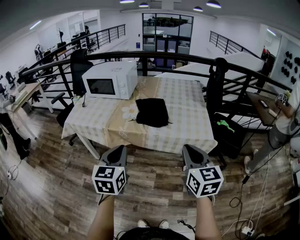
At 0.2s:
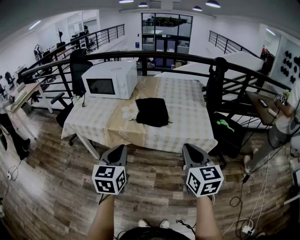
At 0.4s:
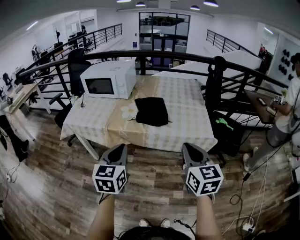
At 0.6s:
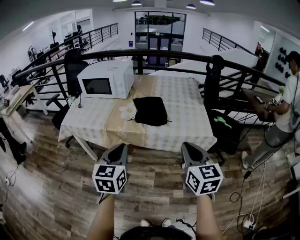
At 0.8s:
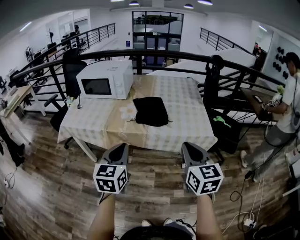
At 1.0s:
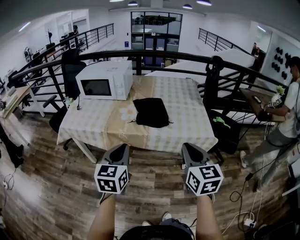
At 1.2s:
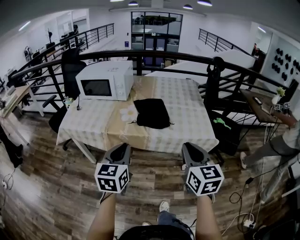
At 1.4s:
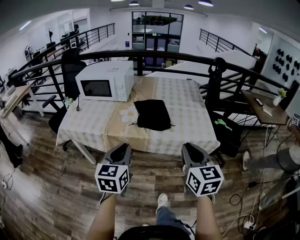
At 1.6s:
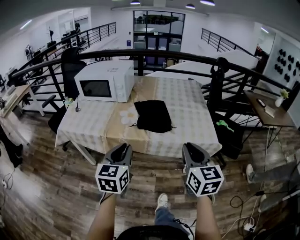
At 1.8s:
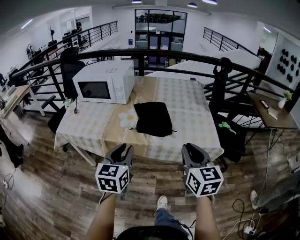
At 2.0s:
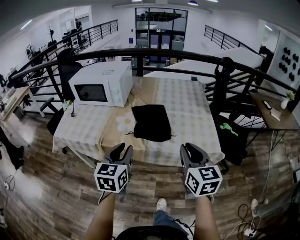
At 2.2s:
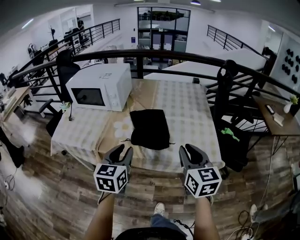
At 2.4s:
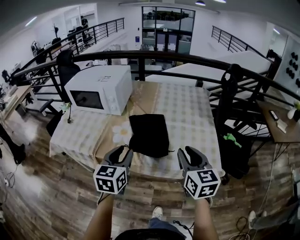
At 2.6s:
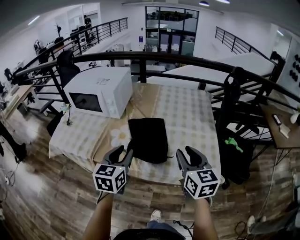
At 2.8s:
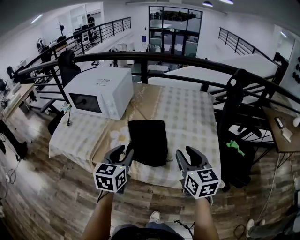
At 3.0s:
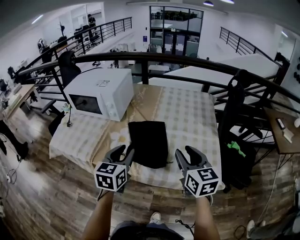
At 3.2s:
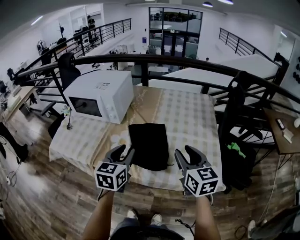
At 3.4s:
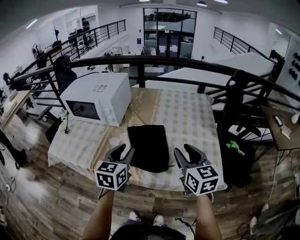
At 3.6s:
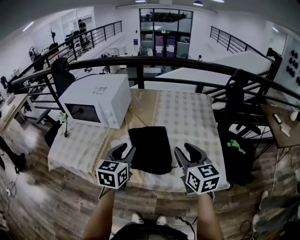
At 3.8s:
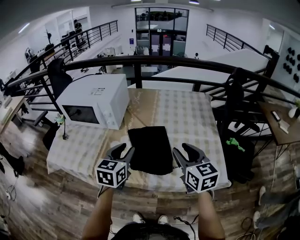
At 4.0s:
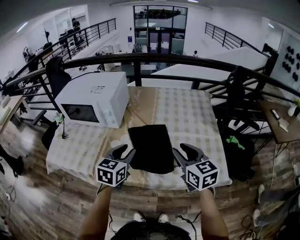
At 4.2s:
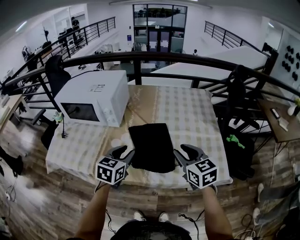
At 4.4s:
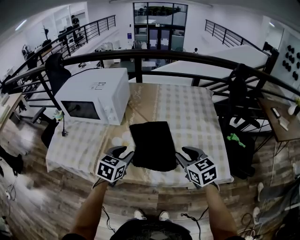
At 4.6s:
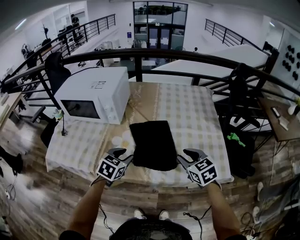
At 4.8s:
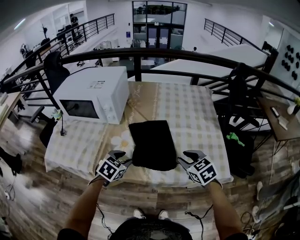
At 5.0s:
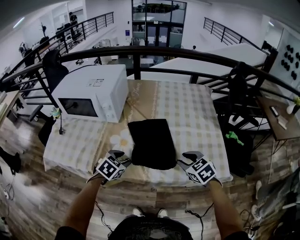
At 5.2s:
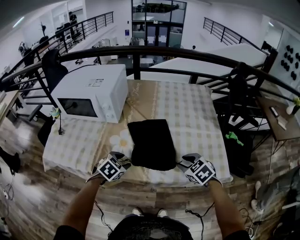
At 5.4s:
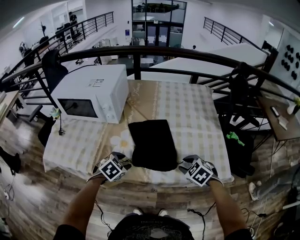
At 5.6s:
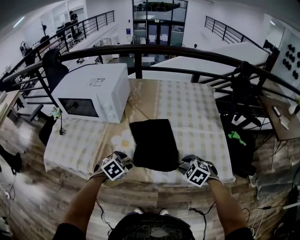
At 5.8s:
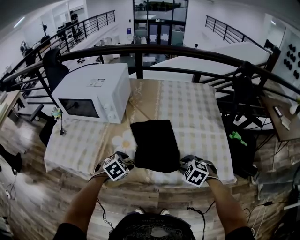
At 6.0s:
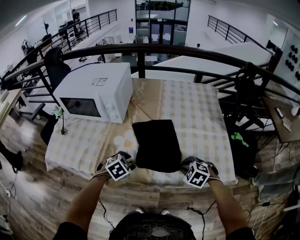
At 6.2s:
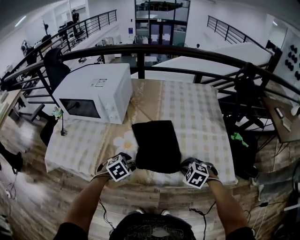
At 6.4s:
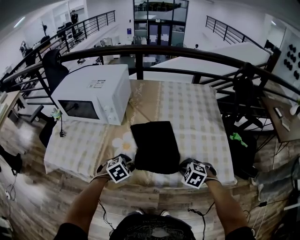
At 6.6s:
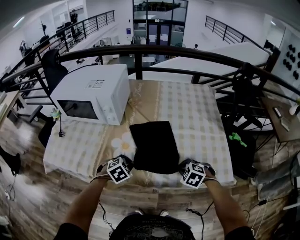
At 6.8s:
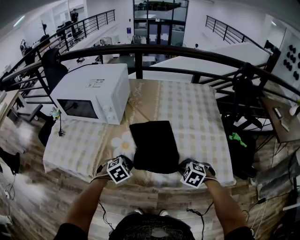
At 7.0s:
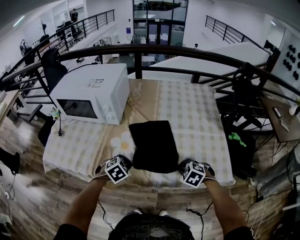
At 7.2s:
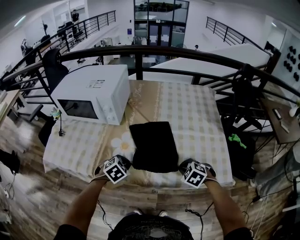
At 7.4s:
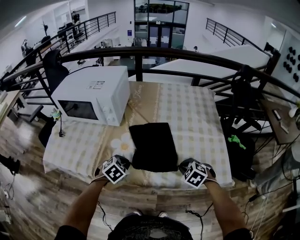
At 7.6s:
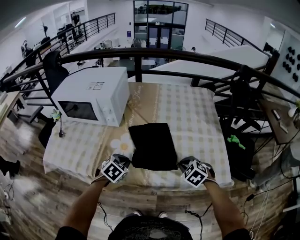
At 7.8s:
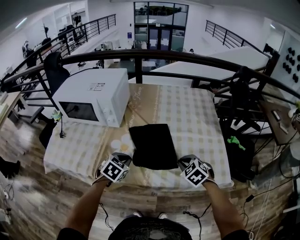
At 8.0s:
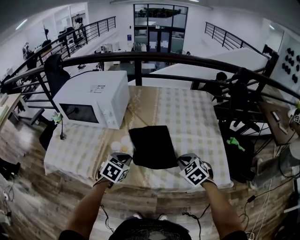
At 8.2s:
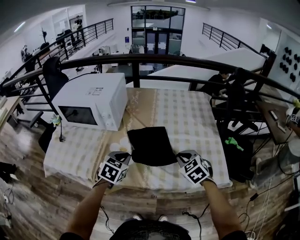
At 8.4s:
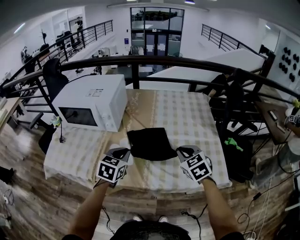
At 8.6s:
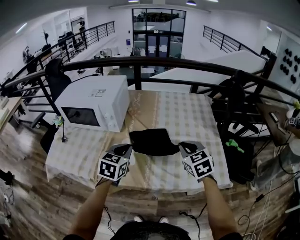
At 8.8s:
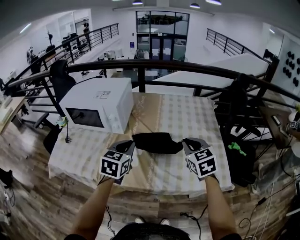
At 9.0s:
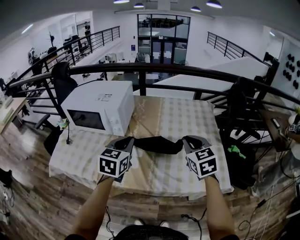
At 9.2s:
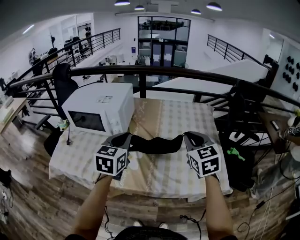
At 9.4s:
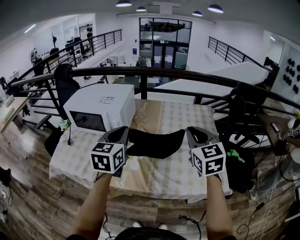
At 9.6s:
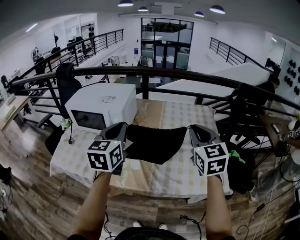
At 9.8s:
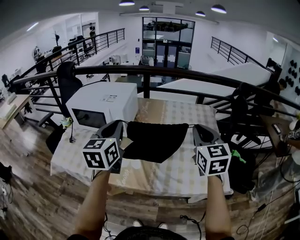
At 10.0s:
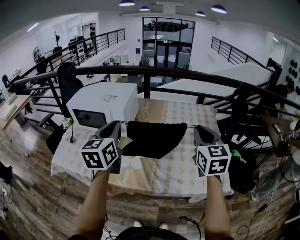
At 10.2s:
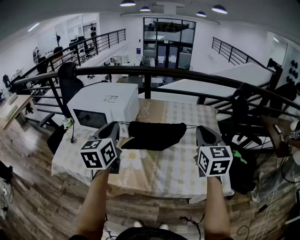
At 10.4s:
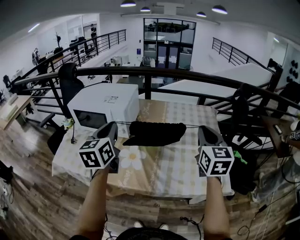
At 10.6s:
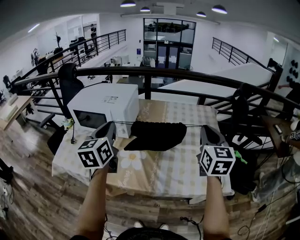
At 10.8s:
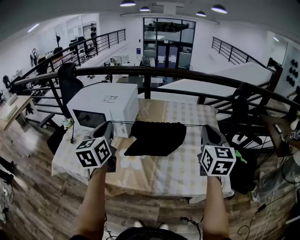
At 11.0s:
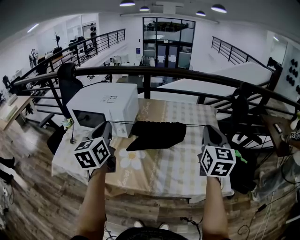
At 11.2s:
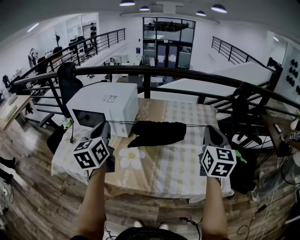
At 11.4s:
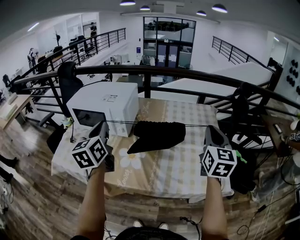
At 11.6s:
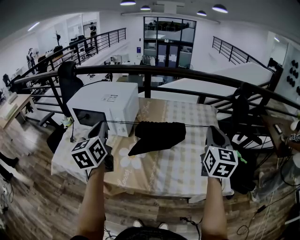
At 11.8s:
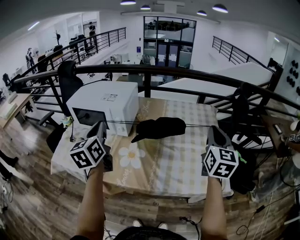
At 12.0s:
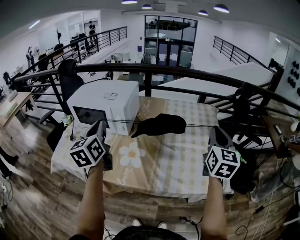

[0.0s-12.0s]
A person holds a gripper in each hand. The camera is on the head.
0.0s to 1.6s: Both grippers move forward, about 5 cm.
1.6s to 3.0s: The two grippers go some 25 cm forward. The left gripper opens. Meanwhile the right gripper opens its fingers.
3.0s to 4.4s: The right gripper is displaced downward and to the left by roughly 10 cm; the left gripper heads downward, forward and to the left, covering about 10 cm, and swivels about 20 degrees.
4.4s to 6.0s: Both grippers move downward, about 15 cm. The right gripper points its fingers some 30 degrees further downward. The left gripper swivels approximately 40 degrees.
6.0s to 7.6s: The left gripper closes up.
7.6s to 9.0s: Both grippers travel together upward, about 20 cm. The left gripper points its fingers roughly 30 degrees further upward. Meanwhile the right gripper tips its fingers upward by approximately 30 degrees.
9.0s to 10.4s: The right gripper goes roughly 10 cm upward, and rotates roughly 20 degrees. Meanwhile the left gripper heads upward and to the left, covering about 15 cm, and changes its angle by about 20 degrees.
10.4s to 12.0s: The right gripper goes approximately 5 cm to the right, while the left gripper travels to the left by approximately 5 cm.

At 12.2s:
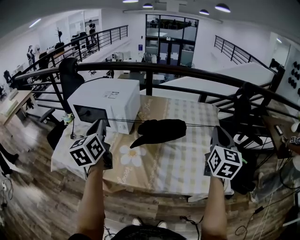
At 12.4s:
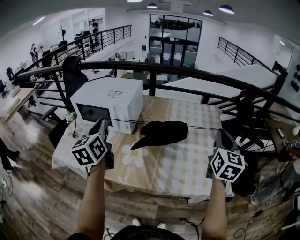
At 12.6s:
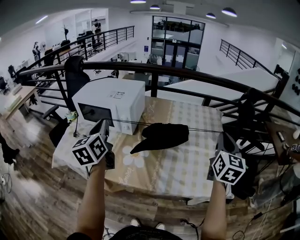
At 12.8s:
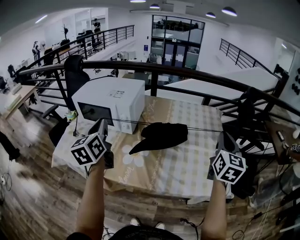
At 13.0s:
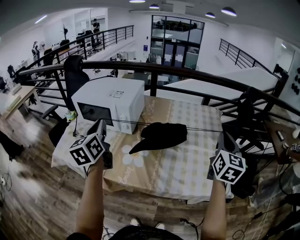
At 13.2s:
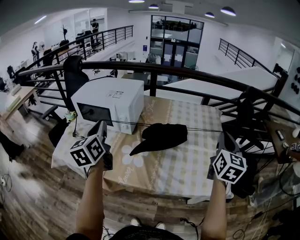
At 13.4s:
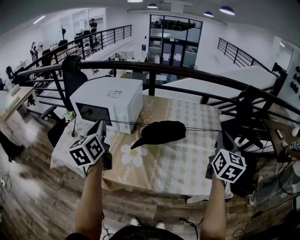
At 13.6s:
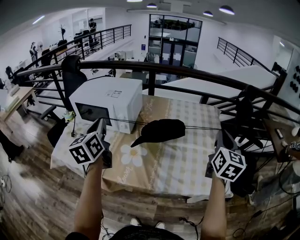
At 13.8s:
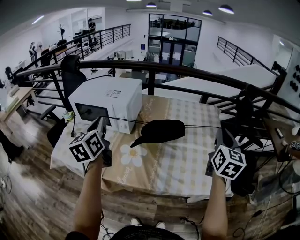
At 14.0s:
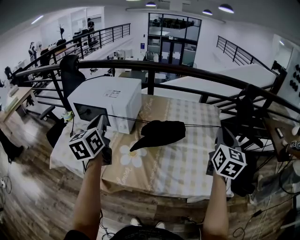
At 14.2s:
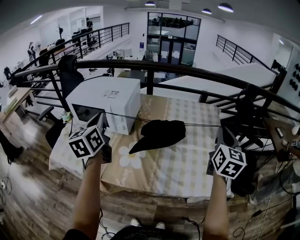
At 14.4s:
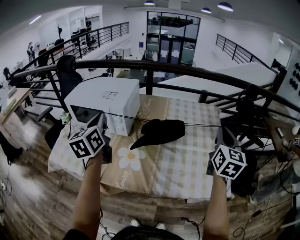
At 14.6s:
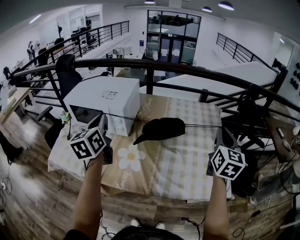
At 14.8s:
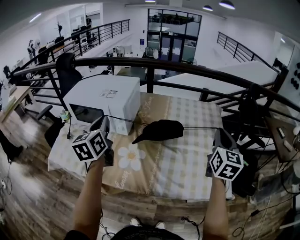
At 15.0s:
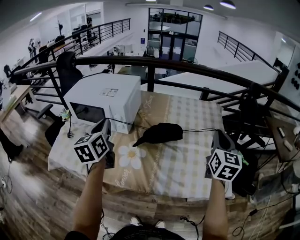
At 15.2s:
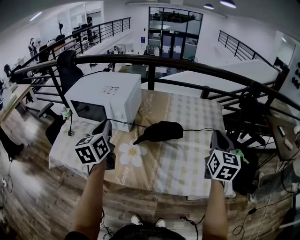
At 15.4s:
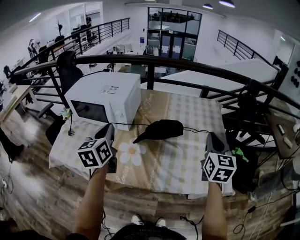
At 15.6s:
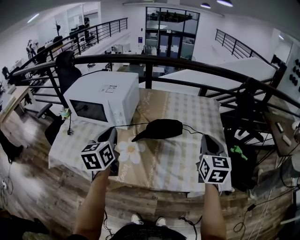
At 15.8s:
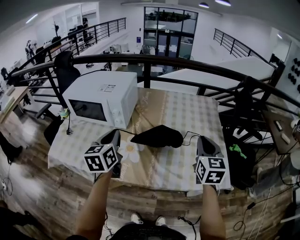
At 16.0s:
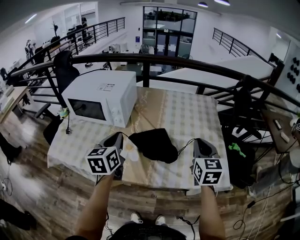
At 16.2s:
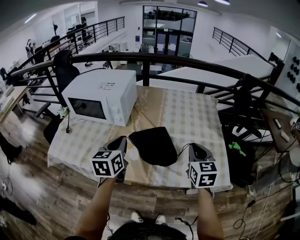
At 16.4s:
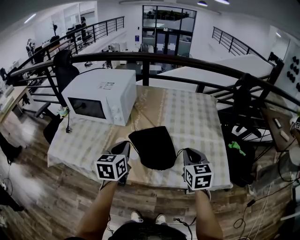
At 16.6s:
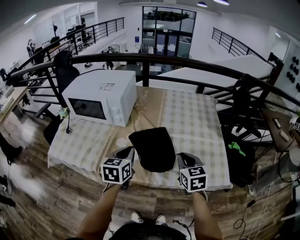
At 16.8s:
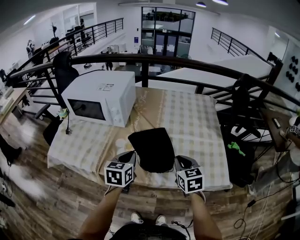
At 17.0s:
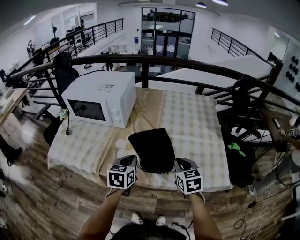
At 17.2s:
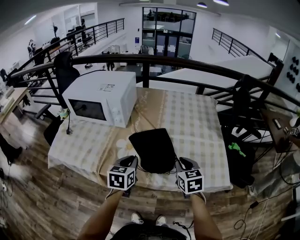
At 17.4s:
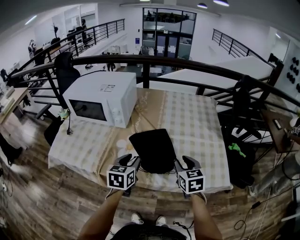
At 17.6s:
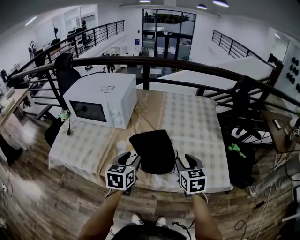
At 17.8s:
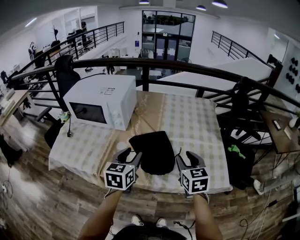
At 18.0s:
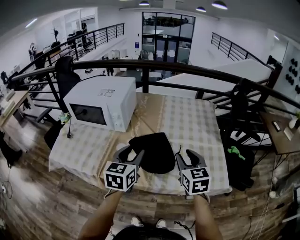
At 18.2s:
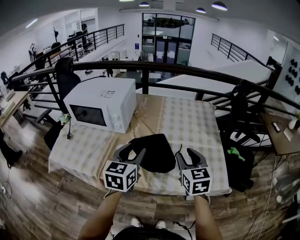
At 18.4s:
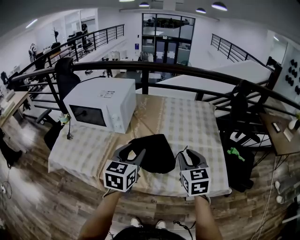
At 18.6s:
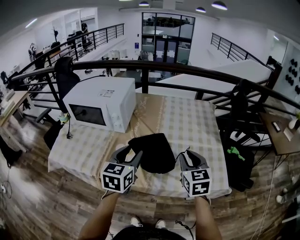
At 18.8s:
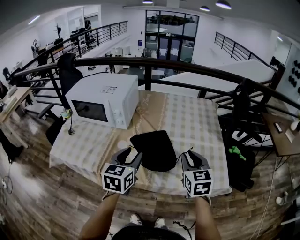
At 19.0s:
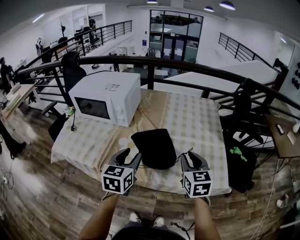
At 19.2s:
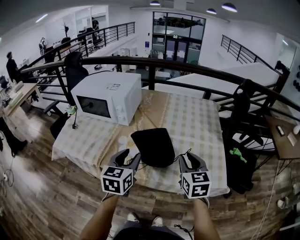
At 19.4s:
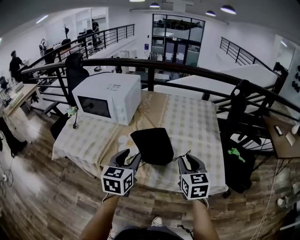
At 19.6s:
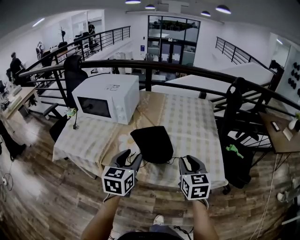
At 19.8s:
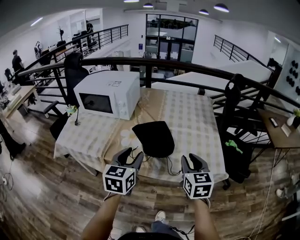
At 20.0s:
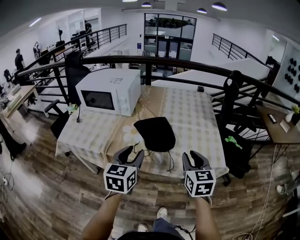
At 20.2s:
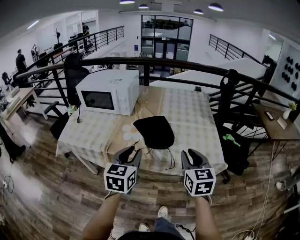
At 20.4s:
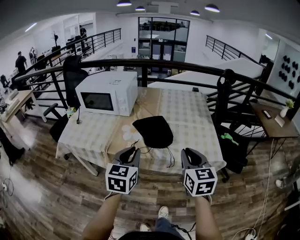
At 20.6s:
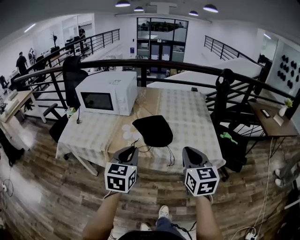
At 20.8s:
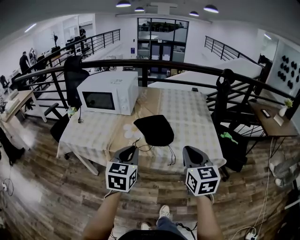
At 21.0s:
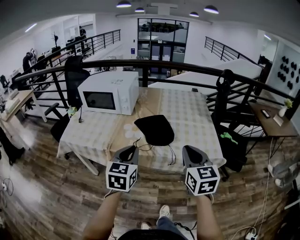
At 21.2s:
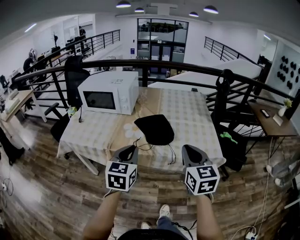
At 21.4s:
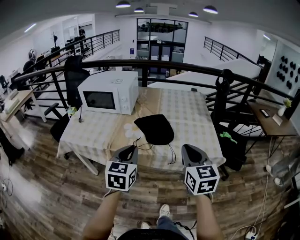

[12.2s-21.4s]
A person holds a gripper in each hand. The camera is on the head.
12.2s to 13.8s: The grippers make only small movements.
13.8s to 15.2s: The left gripper shifts by about 5 cm; the right gripper shifts by approximately 5 cm.
15.2s to 16.8s: The left gripper travels downward, to the right and backward by approximately 20 cm, and changes its angle by roughly 30 degrees; the right gripper heads downward, to the left and backward, covering some 20 cm, and changes its angle by some 30 degrees.
16.8s to 18.4s: Both grippers move upward, about 10 cm. The left gripper opens up. Meanwhile the right gripper opens its fingers.
18.4s to 19.8s: Both grippers travel together backward, some 10 cm.
19.8s to 21.4s: The left gripper moves backward, approximately 10 cm, and closes up. Meanwhile the right gripper goes some 15 cm backward and upward.

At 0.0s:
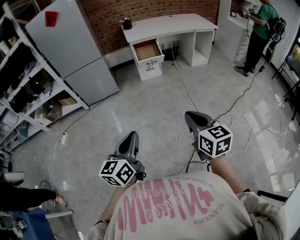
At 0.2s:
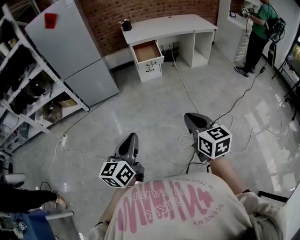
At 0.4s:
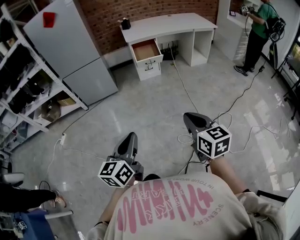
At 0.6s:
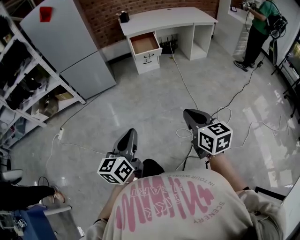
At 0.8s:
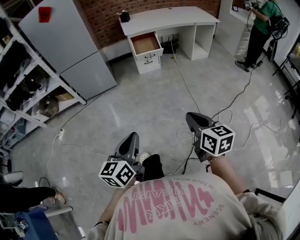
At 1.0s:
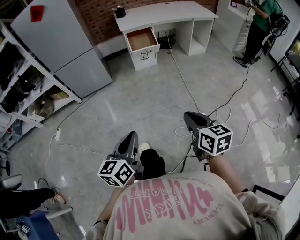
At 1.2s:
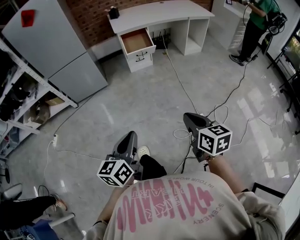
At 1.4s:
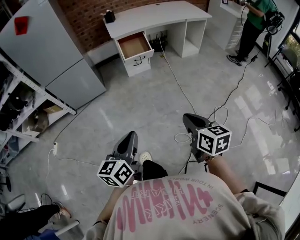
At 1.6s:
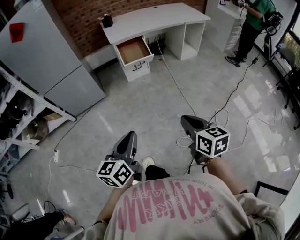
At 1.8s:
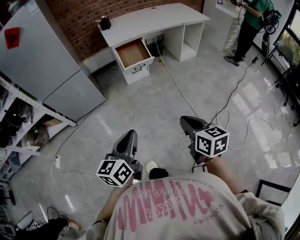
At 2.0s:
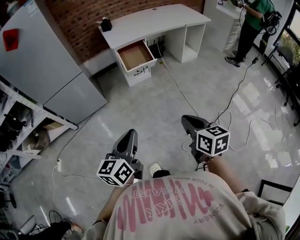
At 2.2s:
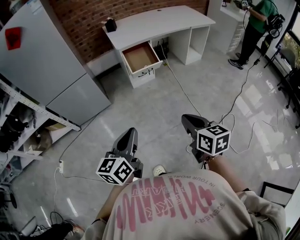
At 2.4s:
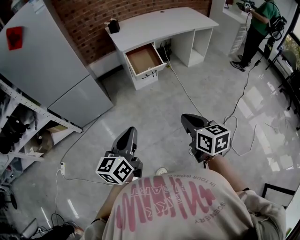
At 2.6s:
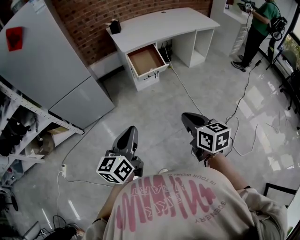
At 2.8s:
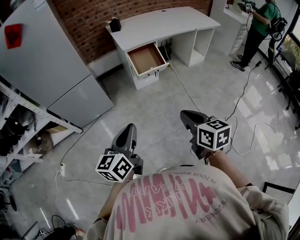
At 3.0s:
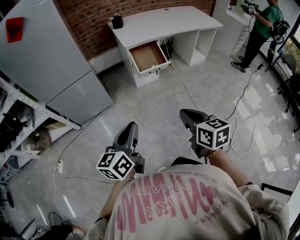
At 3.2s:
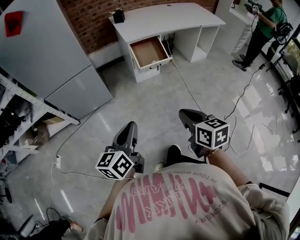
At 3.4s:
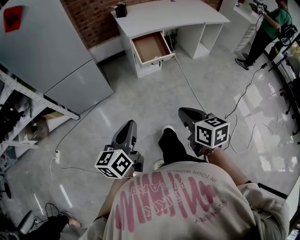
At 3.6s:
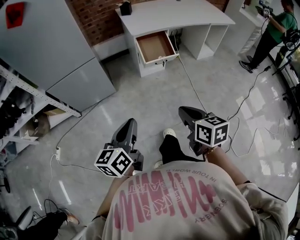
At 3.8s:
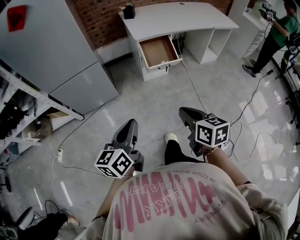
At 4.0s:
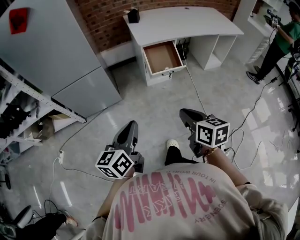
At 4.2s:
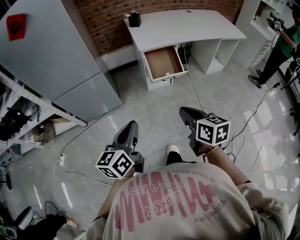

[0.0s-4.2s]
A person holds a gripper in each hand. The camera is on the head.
0.0s to 1.4s: The left gripper goes approximately 15 cm forward; the right gripper is displaced forward and downward by approximately 15 cm.
1.4s to 2.8s: Both grippers travel together forward and to the left, approximately 25 cm.
2.8s to 4.2s: Both grippers move forward, approximately 15 cm.
